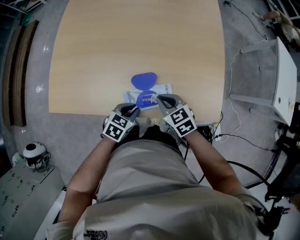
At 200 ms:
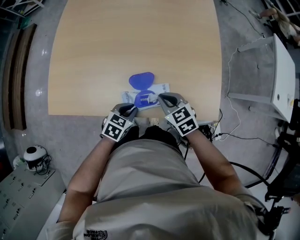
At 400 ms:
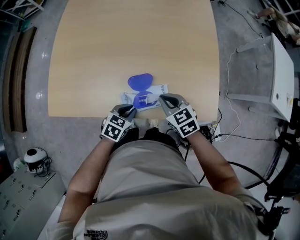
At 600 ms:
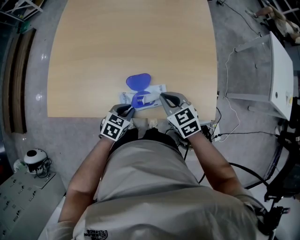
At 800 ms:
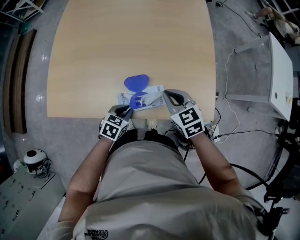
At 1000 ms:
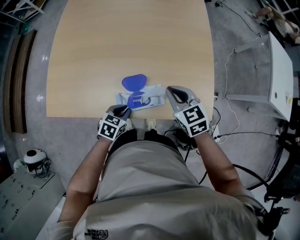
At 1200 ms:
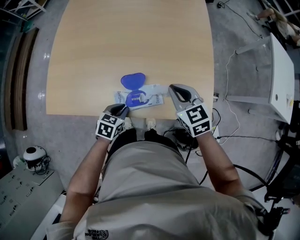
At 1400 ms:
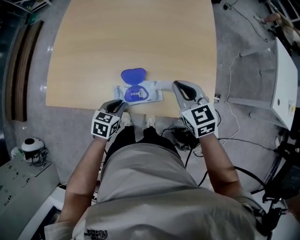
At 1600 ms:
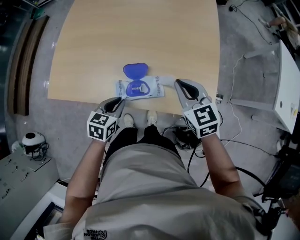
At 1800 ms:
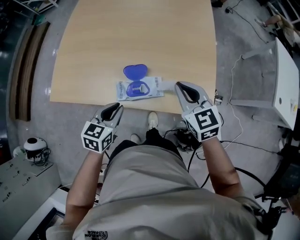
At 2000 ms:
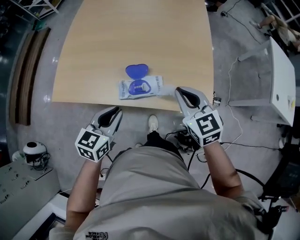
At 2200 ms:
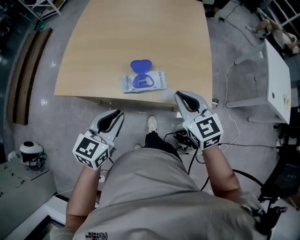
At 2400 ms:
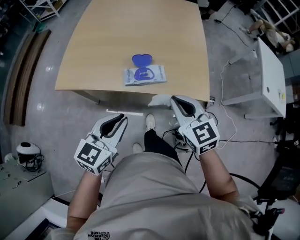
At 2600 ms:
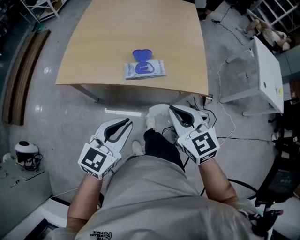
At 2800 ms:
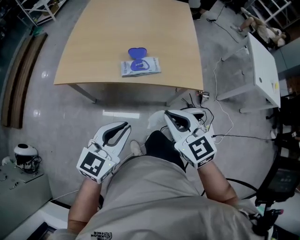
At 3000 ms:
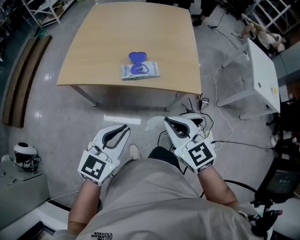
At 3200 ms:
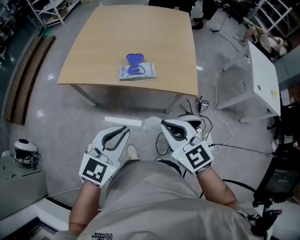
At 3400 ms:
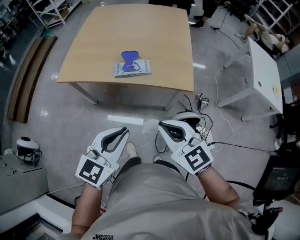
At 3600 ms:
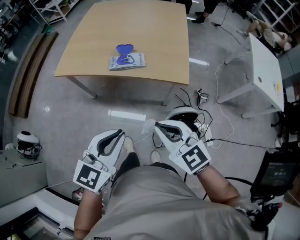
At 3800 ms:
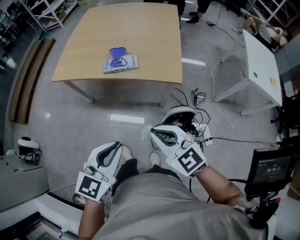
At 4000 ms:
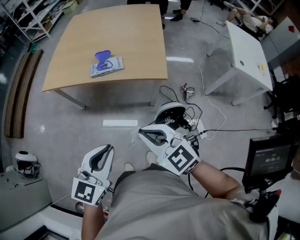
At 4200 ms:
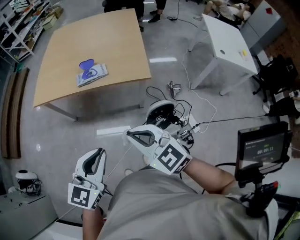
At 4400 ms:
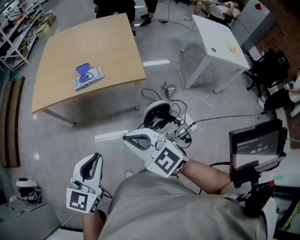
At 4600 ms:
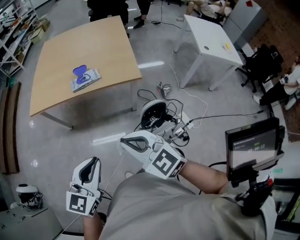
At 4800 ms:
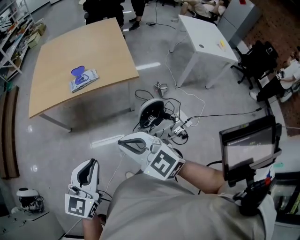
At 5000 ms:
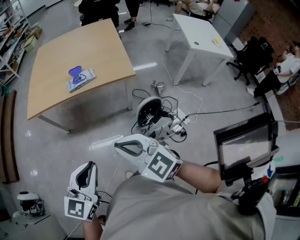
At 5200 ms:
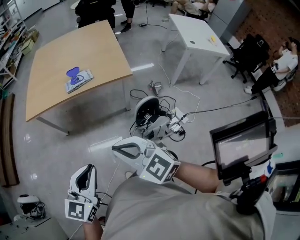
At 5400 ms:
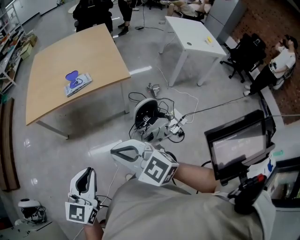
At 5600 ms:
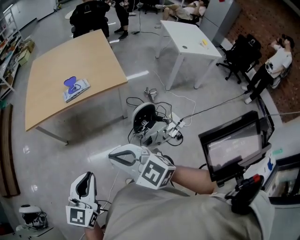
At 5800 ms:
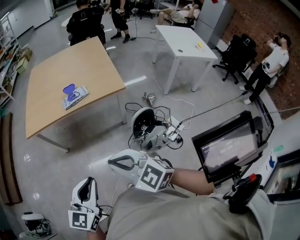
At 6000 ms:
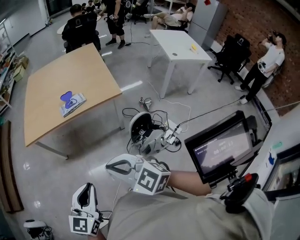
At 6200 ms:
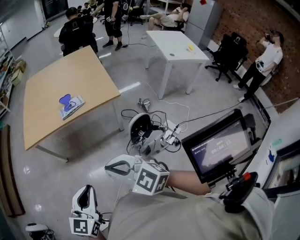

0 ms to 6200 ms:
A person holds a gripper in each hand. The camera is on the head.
0 ms to 1600 ms: The left gripper moves upward, approximately 5 cm, and rotates approximately 20 degrees; the right gripper goes approximately 15 cm upward and to the right.
1600 ms to 3200 ms: The right gripper travels backward by roughly 40 cm; the left gripper is displaced backward and upward by some 40 cm, and turns by approximately 30 degrees.
3200 ms to 4600 ms: Both grippers travel together backward, approximately 20 cm.
4600 ms to 6200 ms: The right gripper shifts about 15 cm backward and to the left. Meanwhile the left gripper shifts approximately 15 cm to the left and backward.

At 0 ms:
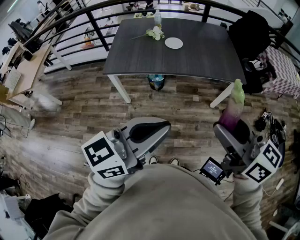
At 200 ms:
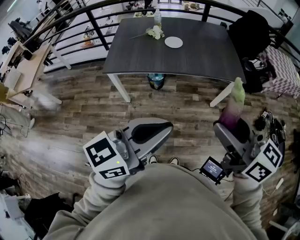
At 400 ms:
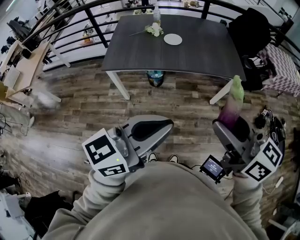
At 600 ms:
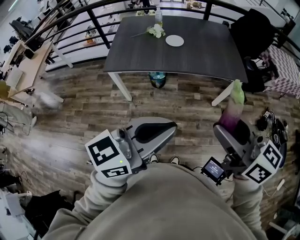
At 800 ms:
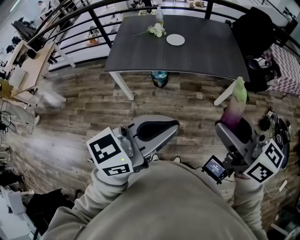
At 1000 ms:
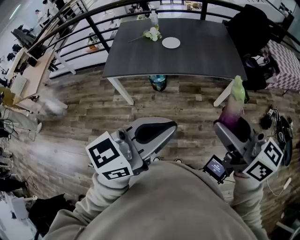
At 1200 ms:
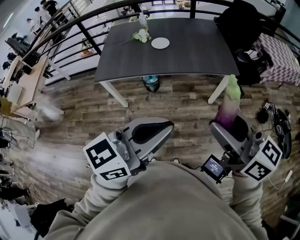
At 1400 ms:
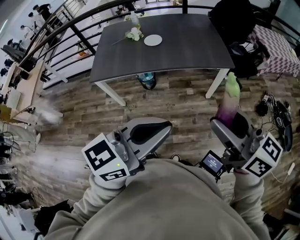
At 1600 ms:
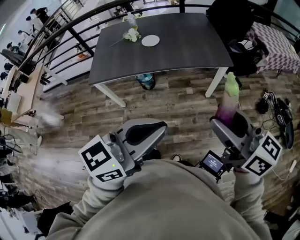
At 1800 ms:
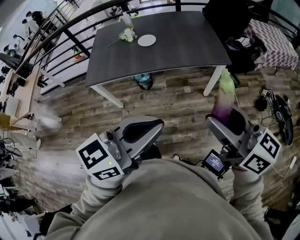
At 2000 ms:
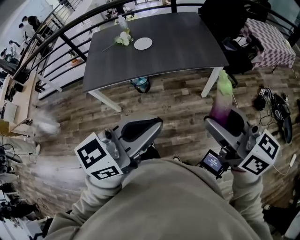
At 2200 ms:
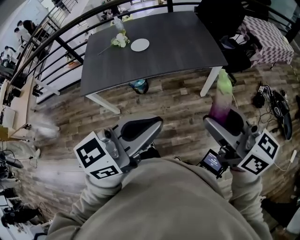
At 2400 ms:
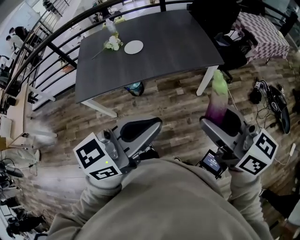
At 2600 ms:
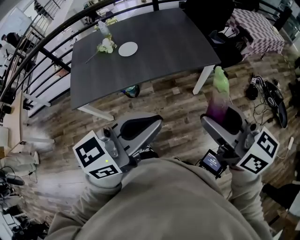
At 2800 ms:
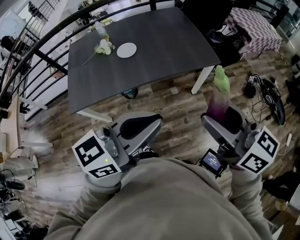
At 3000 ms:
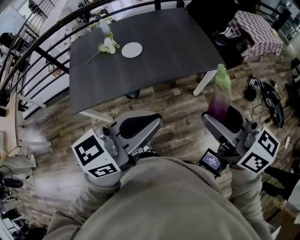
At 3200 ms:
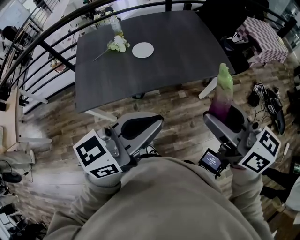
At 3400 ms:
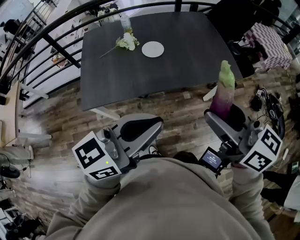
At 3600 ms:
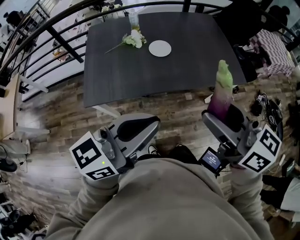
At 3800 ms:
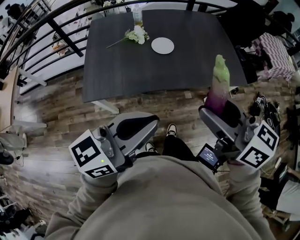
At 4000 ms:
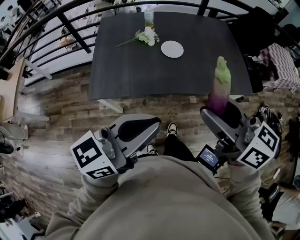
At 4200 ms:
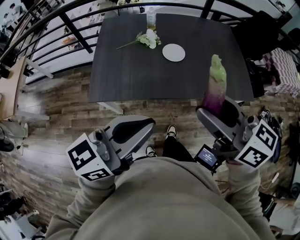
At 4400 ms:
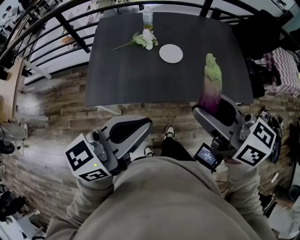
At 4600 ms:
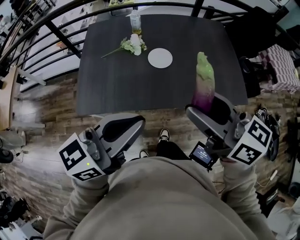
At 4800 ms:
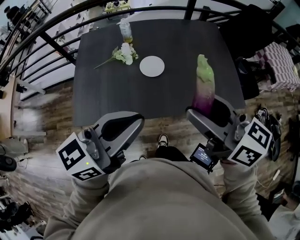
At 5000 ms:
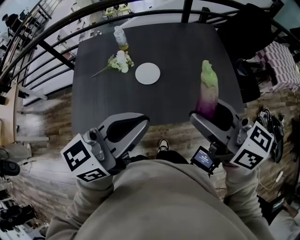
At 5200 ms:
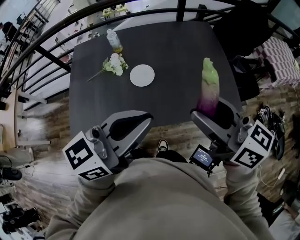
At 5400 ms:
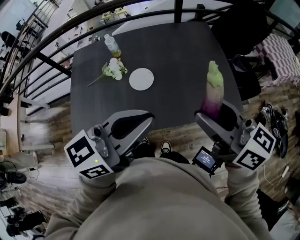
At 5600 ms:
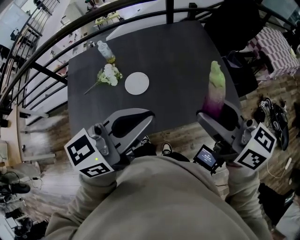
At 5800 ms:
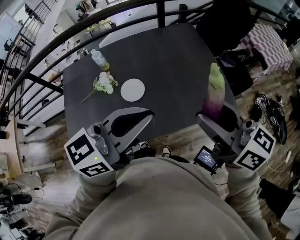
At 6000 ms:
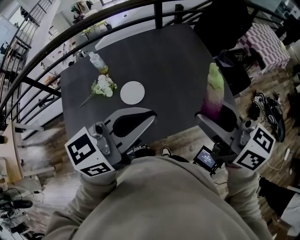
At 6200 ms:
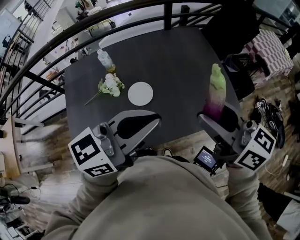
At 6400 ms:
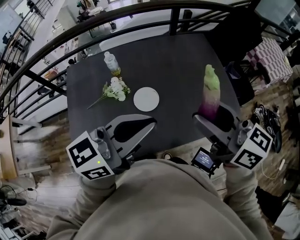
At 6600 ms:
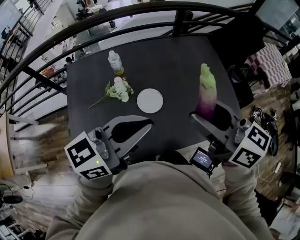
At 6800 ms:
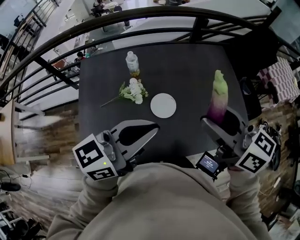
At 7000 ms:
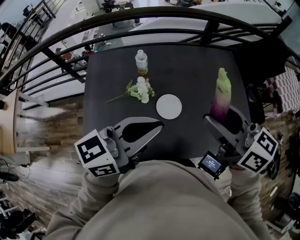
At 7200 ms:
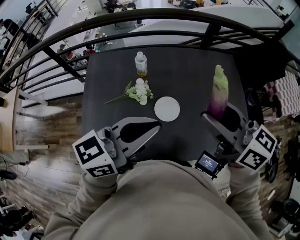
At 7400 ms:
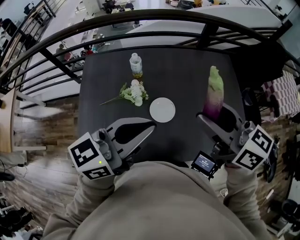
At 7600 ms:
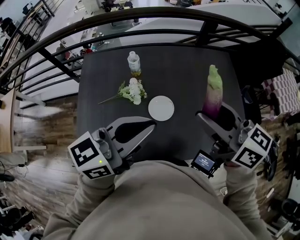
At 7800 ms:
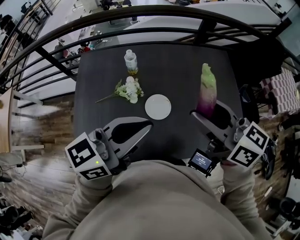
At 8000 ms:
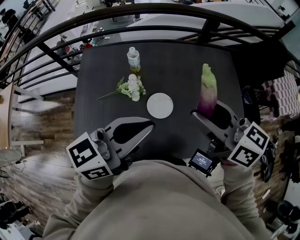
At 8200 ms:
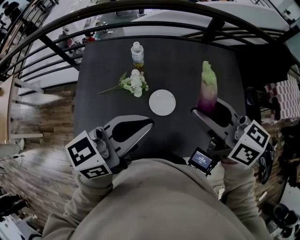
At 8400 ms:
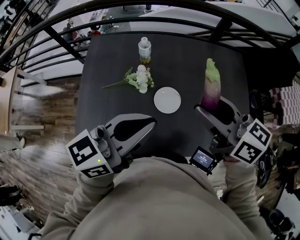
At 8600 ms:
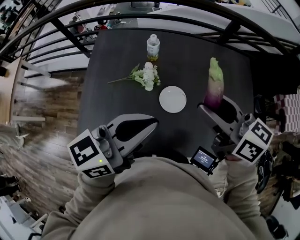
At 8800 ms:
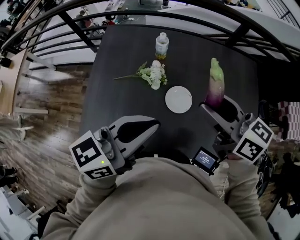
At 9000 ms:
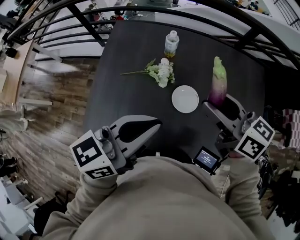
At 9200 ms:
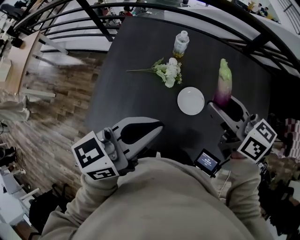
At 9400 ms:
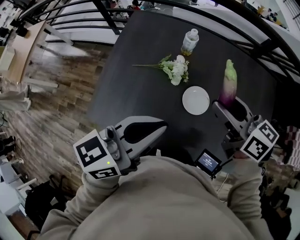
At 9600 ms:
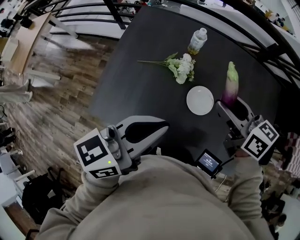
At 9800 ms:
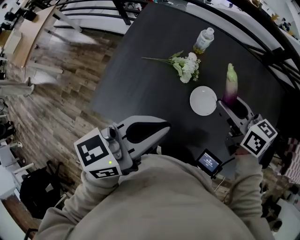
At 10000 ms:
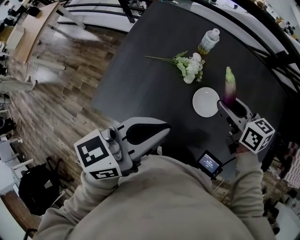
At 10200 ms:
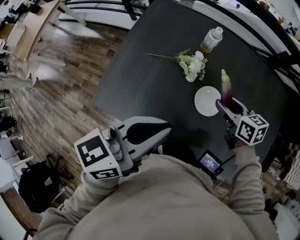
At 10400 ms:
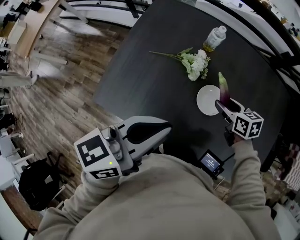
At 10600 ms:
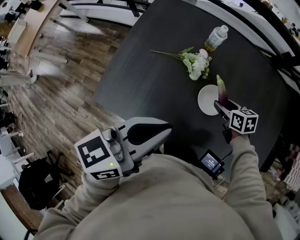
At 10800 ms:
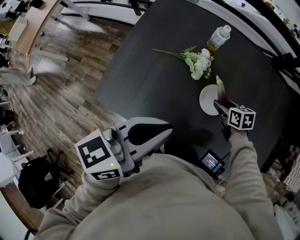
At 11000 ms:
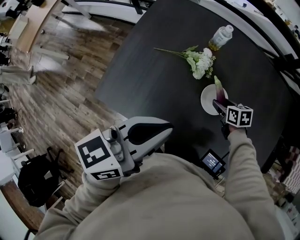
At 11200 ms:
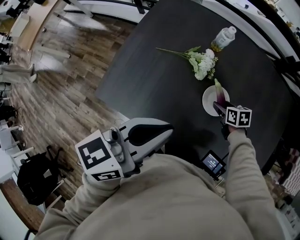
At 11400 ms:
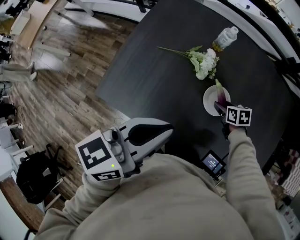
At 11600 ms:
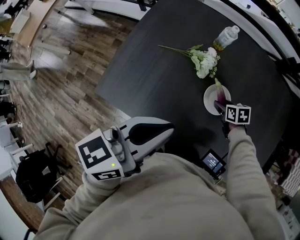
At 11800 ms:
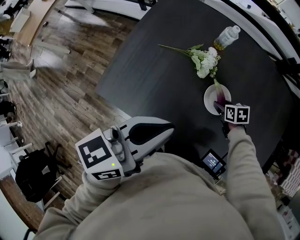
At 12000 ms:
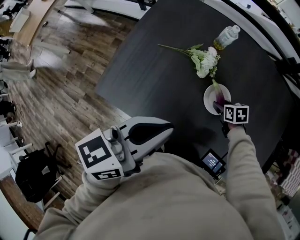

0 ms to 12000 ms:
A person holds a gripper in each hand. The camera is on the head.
0 ms to 1600 ms: Both grippers move to the right, about 15 cm.
1600 ms to 3000 ms: Both grippers move forward and to the left, roughly 20 cm.
3000 ms to 4400 ms: Both grippers travel together to the left and forward, roughly 25 cm.
4400 ms to 6000 ms: Both grippers move forward and to the right, some 25 cm.
6000 ms to 7600 ms: Both grippers move to the left and forward, approximately 20 cm.
7600 ms to 9000 ms: The left gripper moves to the left, approximately 5 cm. The right gripper moves downward and to the left, approximately 10 cm.
9000 ms to 10400 ms: The left gripper shifts by some 5 cm; the right gripper shifts roughly 25 cm downward, and turns by some 30 degrees.
10400 ms to 12000 ms: The right gripper shifts about 15 cm downward, and rotates roughly 20 degrees.

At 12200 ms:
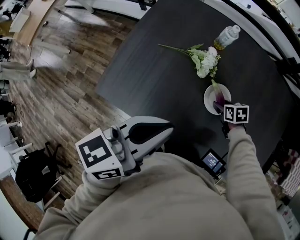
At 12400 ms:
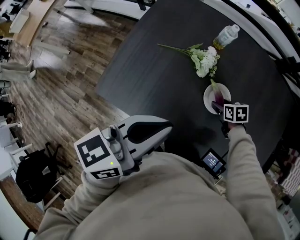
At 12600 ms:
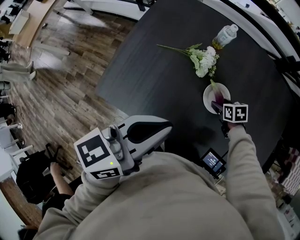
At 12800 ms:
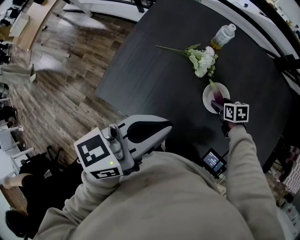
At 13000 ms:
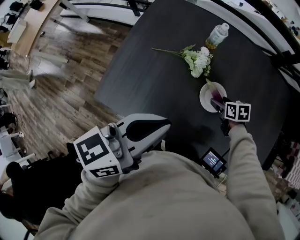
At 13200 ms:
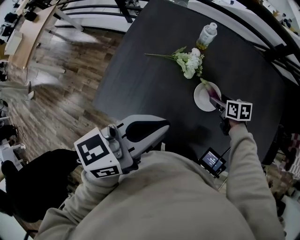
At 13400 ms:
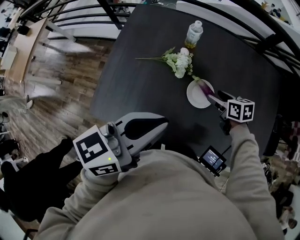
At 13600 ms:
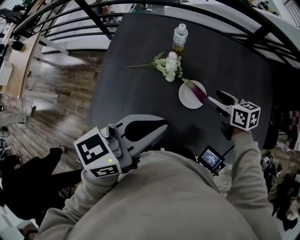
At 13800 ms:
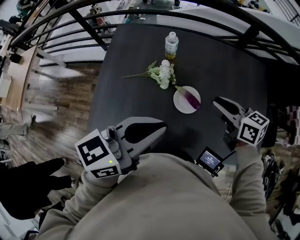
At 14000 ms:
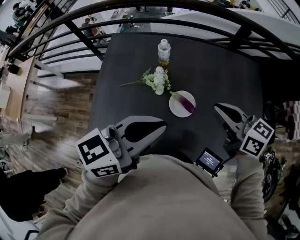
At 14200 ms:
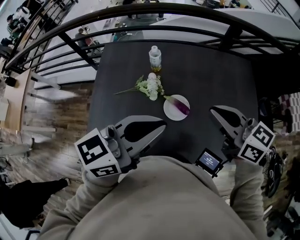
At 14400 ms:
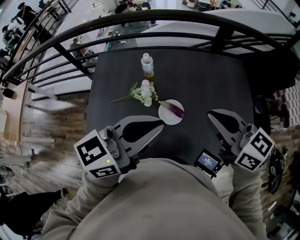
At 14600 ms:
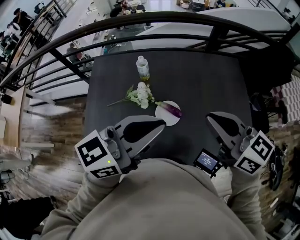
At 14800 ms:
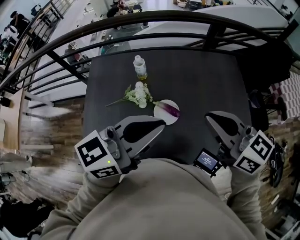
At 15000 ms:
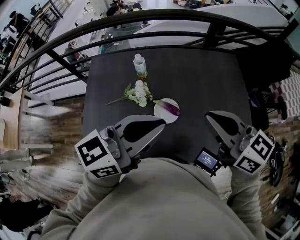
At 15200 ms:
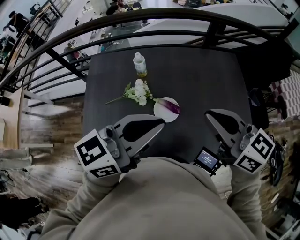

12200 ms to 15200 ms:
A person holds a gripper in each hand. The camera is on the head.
12200 ms to 13800 ms: The left gripper heads to the right and upward, covering about 10 cm, and swivels about 20 degrees; the right gripper is displaced upward by some 30 cm, tilts its fingers approximately 40 degrees upward, and closes.
13800 ms to 15200 ms: The right gripper heads upward and backward, covering some 15 cm, and turns by some 20 degrees; the left gripper moves to the right and upward, about 10 cm.

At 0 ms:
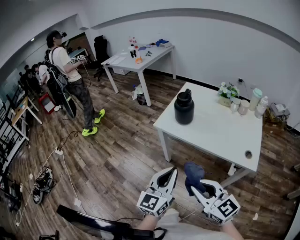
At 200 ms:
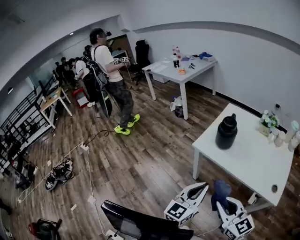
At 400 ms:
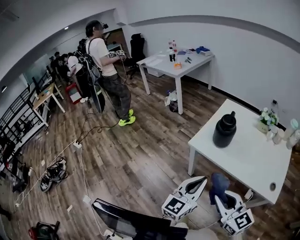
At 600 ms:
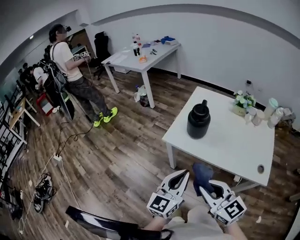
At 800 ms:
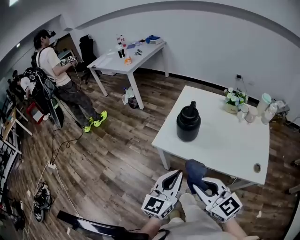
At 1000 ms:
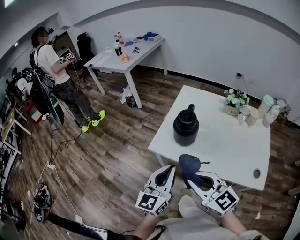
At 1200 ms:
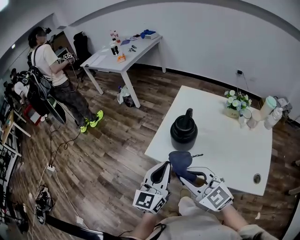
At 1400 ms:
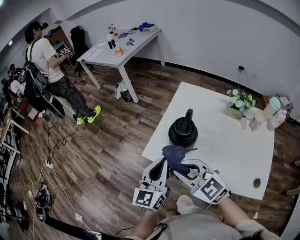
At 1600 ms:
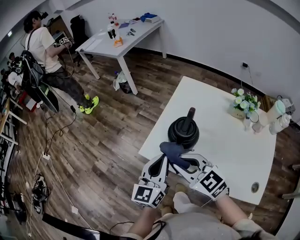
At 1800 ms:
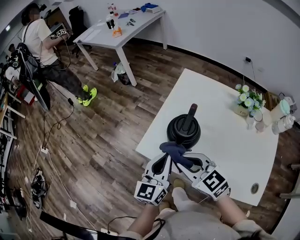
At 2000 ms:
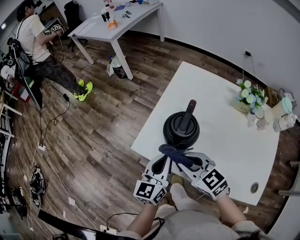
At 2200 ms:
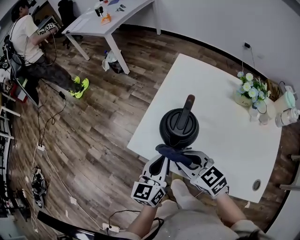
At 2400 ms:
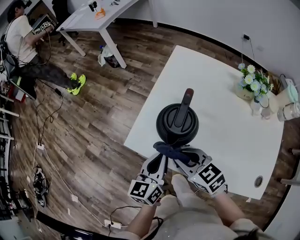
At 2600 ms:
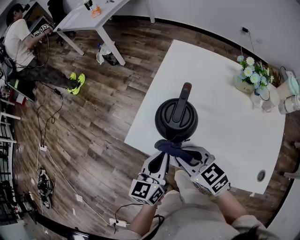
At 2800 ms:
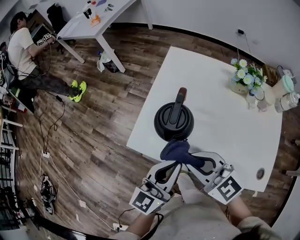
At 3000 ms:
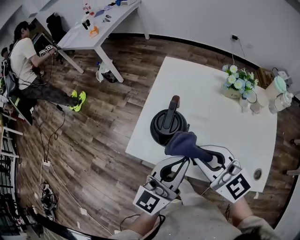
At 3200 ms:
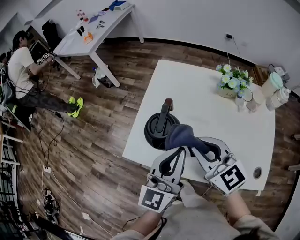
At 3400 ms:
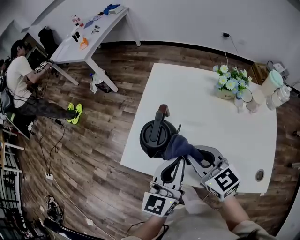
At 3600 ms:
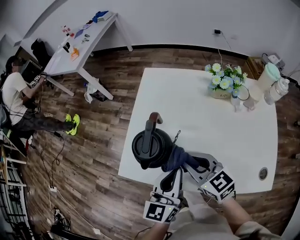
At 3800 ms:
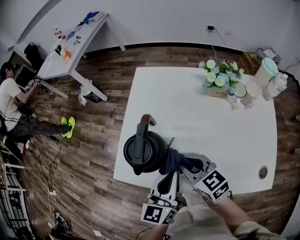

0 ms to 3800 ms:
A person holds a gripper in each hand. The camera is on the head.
0 ms to 1200 ms: The two grippers go roughly 25 cm forward.
1200 ms to 2600 ms: The grippers both shift downward and forward by about 20 cm. The right gripper rotates approximately 30 degrees; the left gripper swivels some 20 degrees.
2600 ms to 3800 ms: Both grippers travel together to the right, some 10 cm. The left gripper goes upward and returns, about 15 cm each way; the right gripper goes upward and returns, approximately 15 cm each way, and turns by some 20 degrees.
